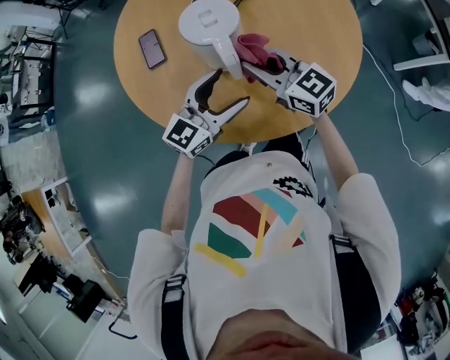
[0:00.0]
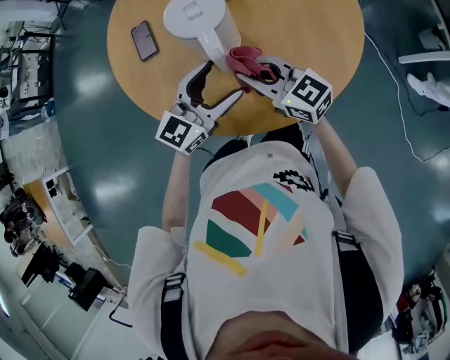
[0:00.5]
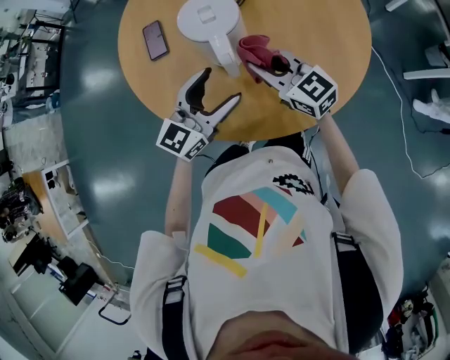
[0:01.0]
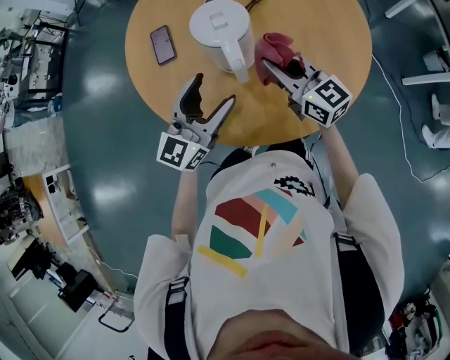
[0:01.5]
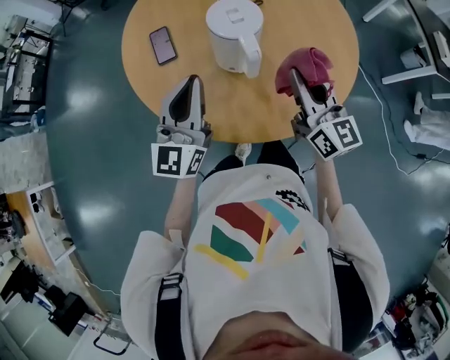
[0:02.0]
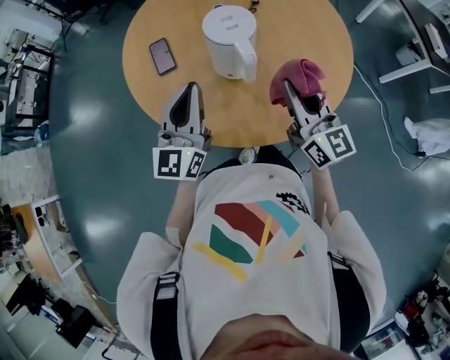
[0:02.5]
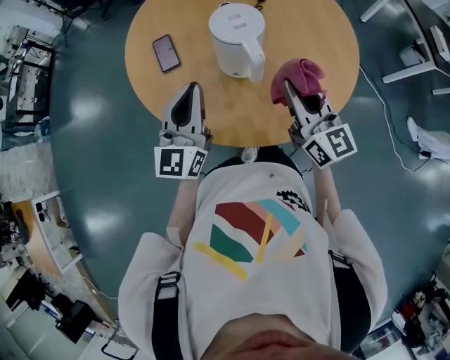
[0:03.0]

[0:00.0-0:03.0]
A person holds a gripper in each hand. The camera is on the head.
0:00.0 to 0:01.5: The left gripper shifts roughly 5 cm to the left.
0:01.5 to 0:03.0: The left gripper heads to the left, covering some 10 cm, and closes. The right gripper goes approximately 10 cm backward, and rotates roughly 30 degrees.

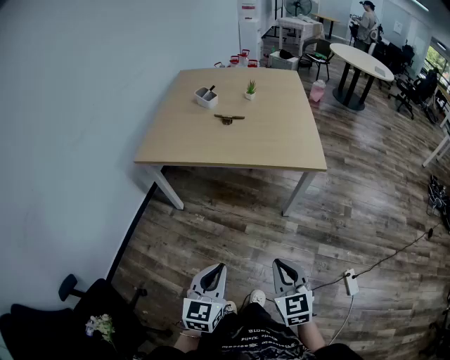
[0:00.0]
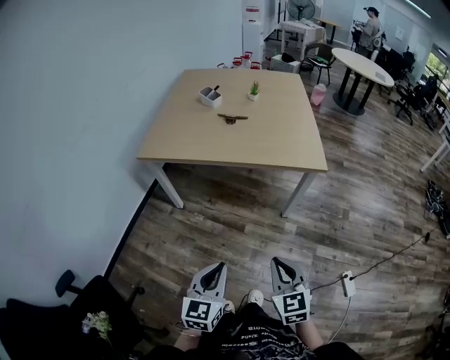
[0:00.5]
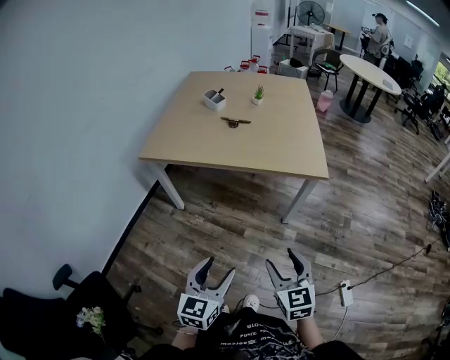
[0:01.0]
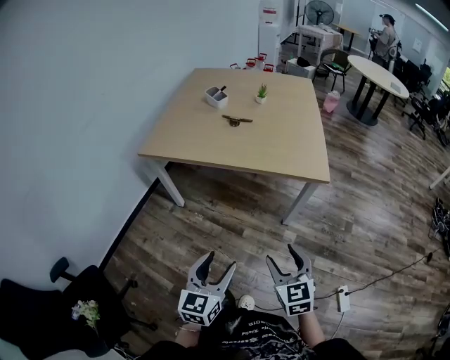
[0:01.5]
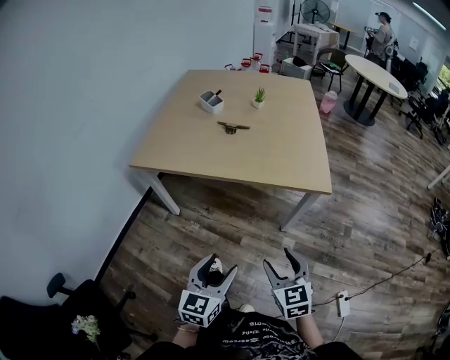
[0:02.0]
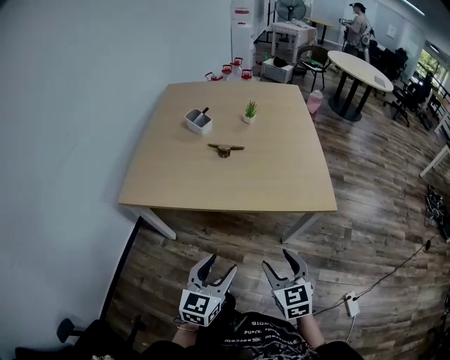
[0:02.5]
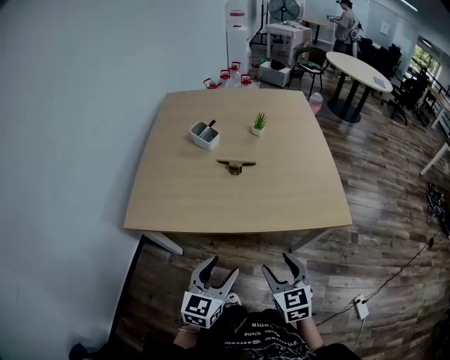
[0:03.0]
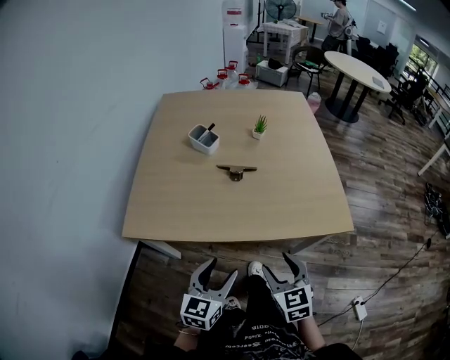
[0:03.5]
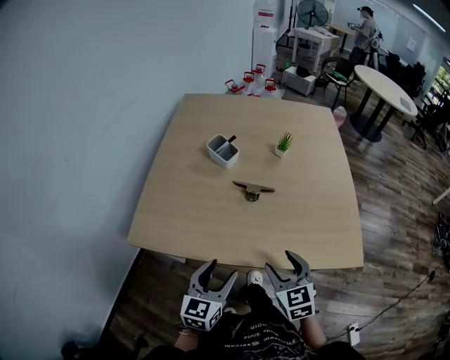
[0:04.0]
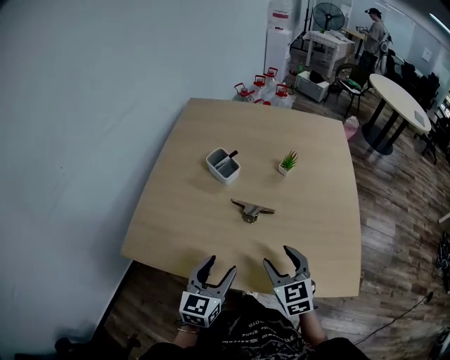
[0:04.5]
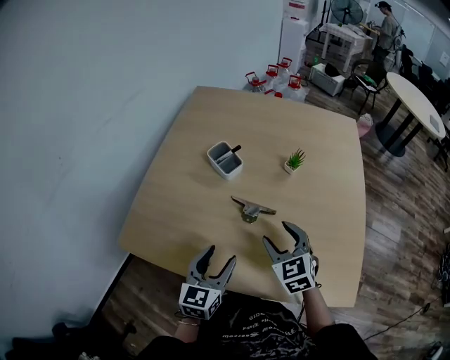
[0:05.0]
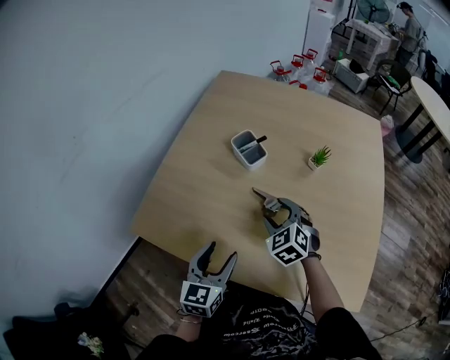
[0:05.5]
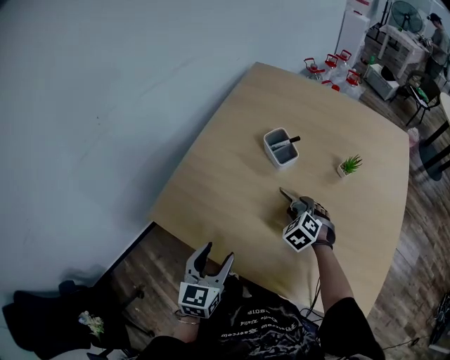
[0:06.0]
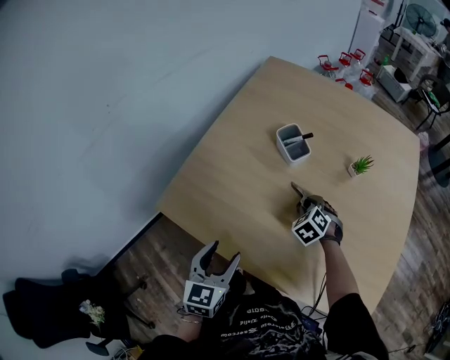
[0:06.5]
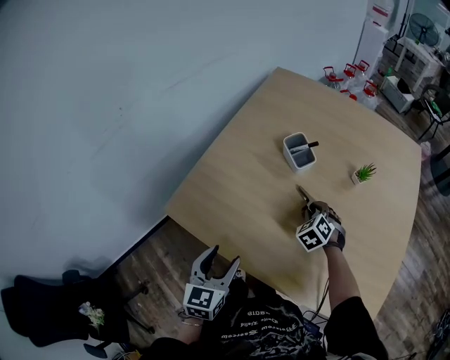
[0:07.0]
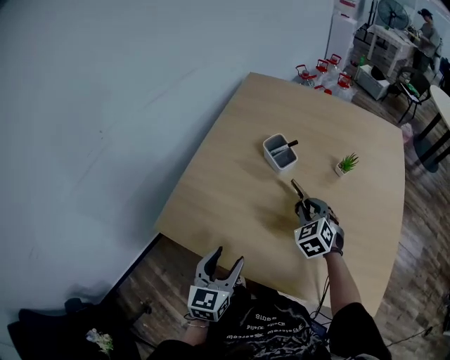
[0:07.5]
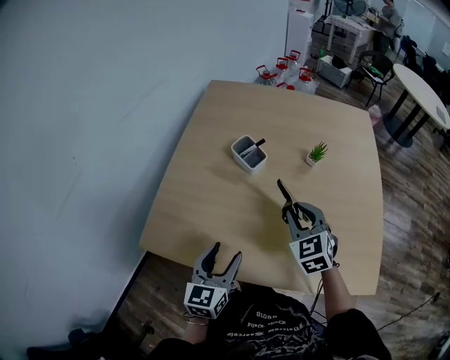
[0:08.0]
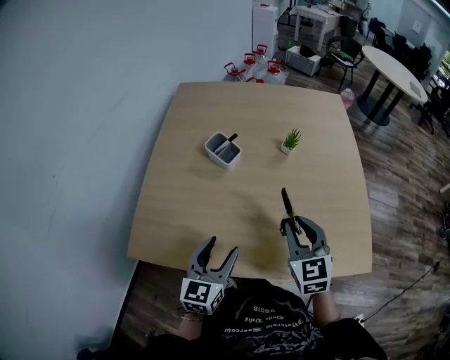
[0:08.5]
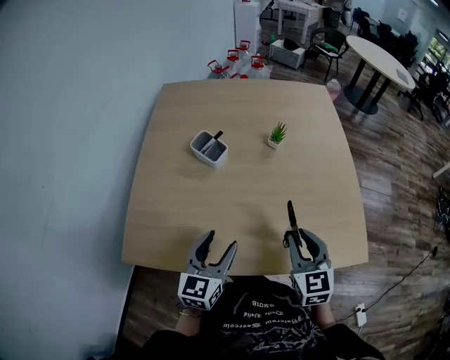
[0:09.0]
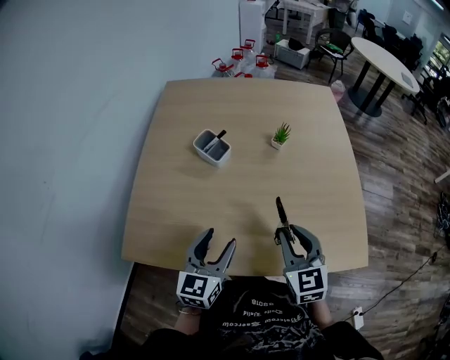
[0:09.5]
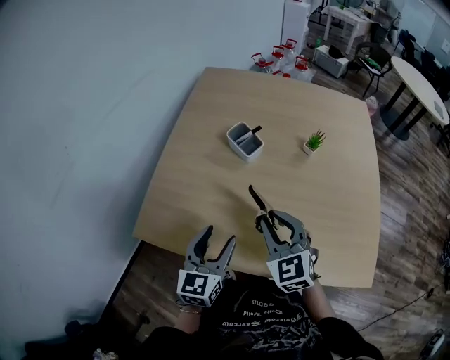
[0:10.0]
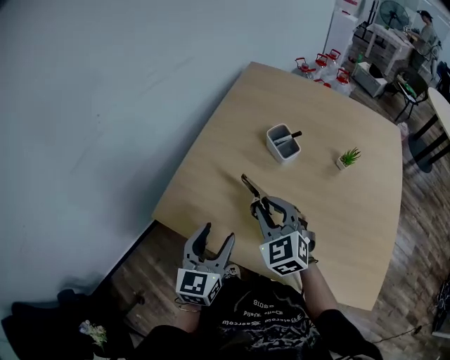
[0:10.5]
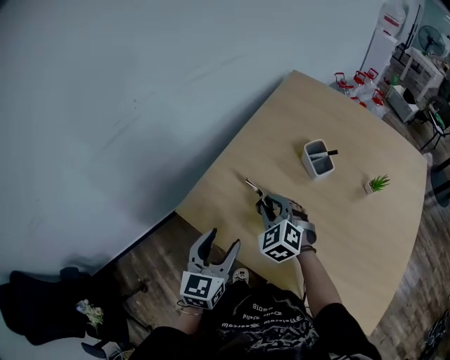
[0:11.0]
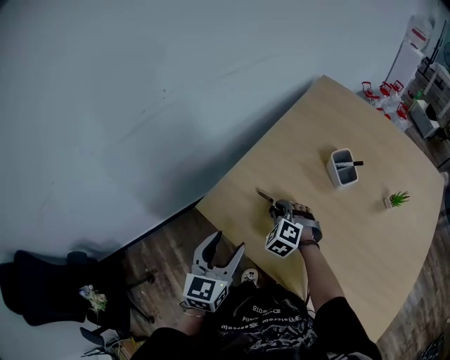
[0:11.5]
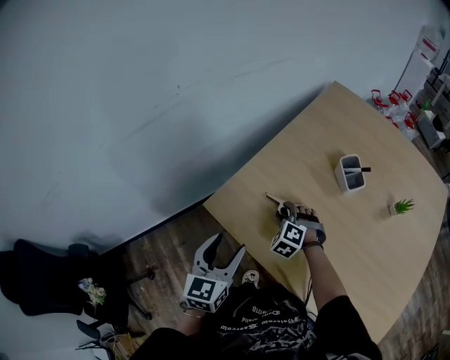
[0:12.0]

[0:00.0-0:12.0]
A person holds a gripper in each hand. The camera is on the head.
0:00.0 to 0:02.0: Both grippers travel together forward, some 10 cm. The right gripper opens its fingers. Meanwhile the left gripper opens up.
0:02.0 to 0:04.0: Both grippers travel together forward and to the left, roughly 40 cm.
0:04.0 to 0:06.0: The right gripper goes about 30 cm forward, and rolls counterclockwise, seen from behind, by some 40 degrees. Meanwhile the left gripper heads forward and to the left, covering about 15 cm, and swivels approximately 30 degrees.
0:06.0 to 0:08.0: The left gripper changes place by some 5 cm, while the right gripper heads upward, covering approximately 15 cm, changes its angle by about 40 degrees, and closes up.
0:08.0 to 0:10.0: The right gripper is displaced backward and to the left by some 10 cm.
0:10.0 to 0:12.0: The right gripper travels to the left, downward and forward by some 30 cm, and twists some 50 degrees counterclockwise, seen from behind. The left gripper goes about 20 cm to the left, and rotates some 30 degrees.

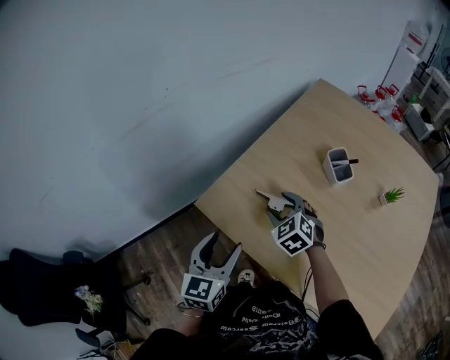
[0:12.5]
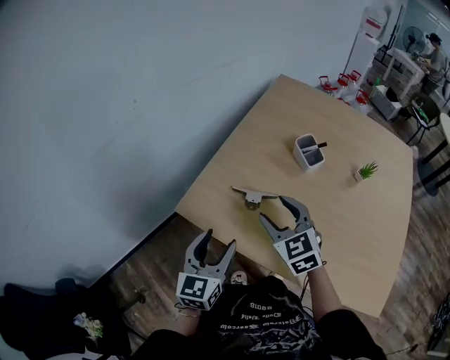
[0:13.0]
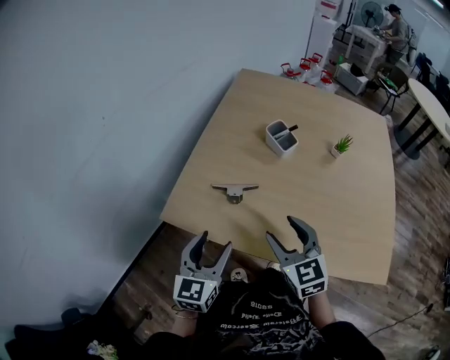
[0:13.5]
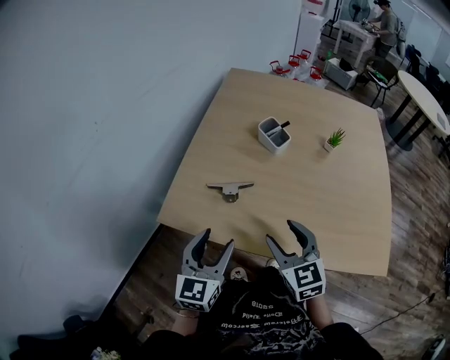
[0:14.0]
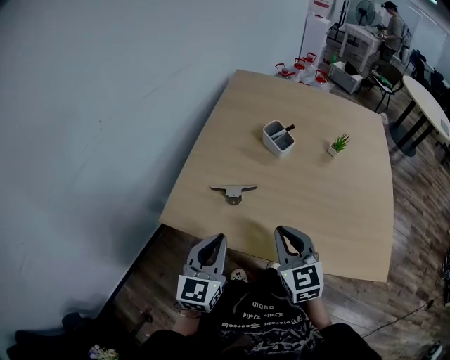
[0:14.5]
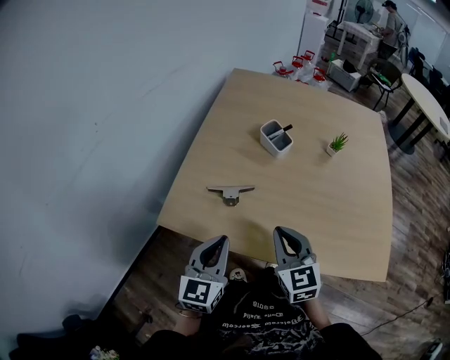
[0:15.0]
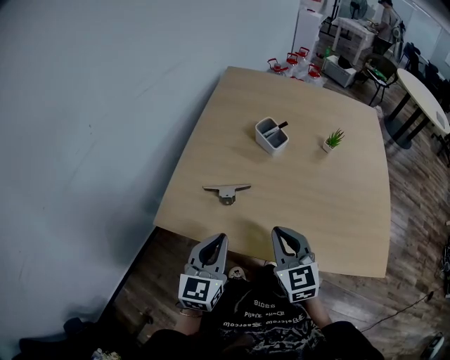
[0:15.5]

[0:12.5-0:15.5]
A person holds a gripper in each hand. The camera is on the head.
0:12.5 to 0:14.0: The left gripper moves to the right, about 5 cm, and rotates approximately 20 degrees. Meanwhile the right gripper moves backward, to the right and upward, about 25 cm, and changes its angle by approximately 40 degrees.
0:14.0 to 0:15.5: The right gripper closes up, while the left gripper closes up.

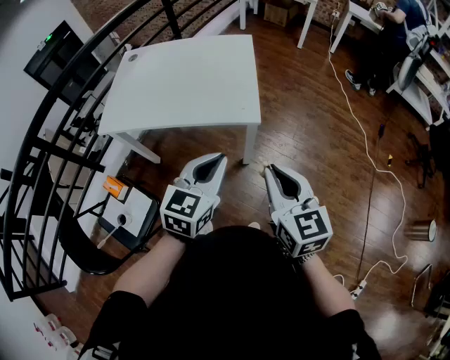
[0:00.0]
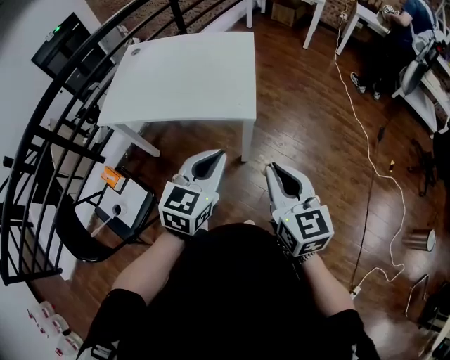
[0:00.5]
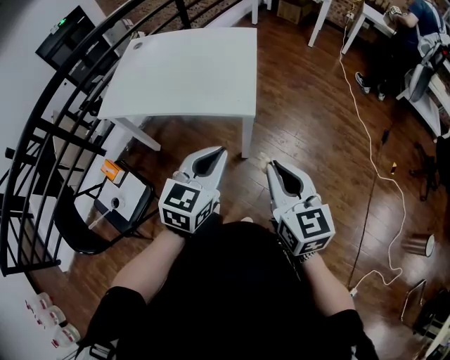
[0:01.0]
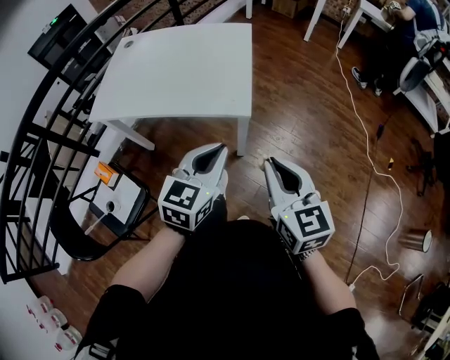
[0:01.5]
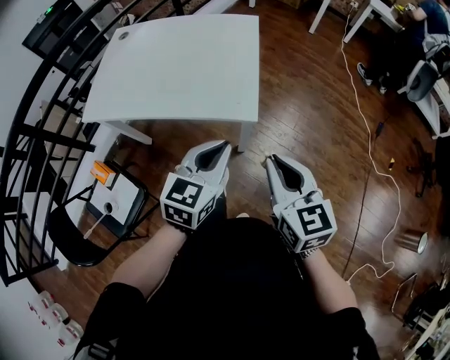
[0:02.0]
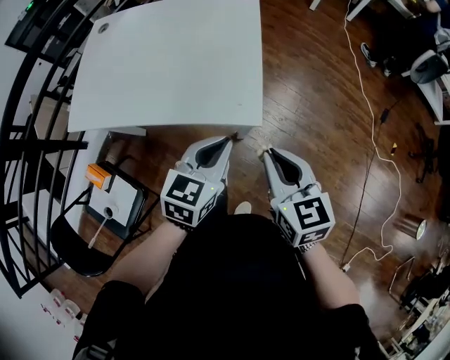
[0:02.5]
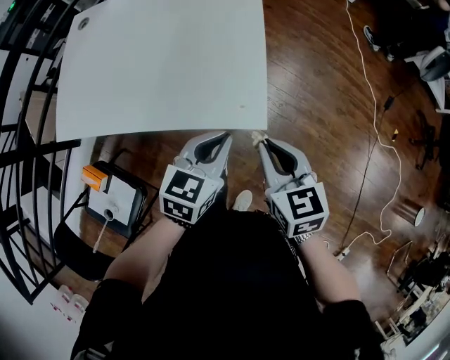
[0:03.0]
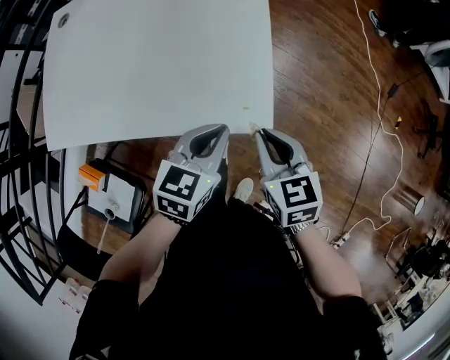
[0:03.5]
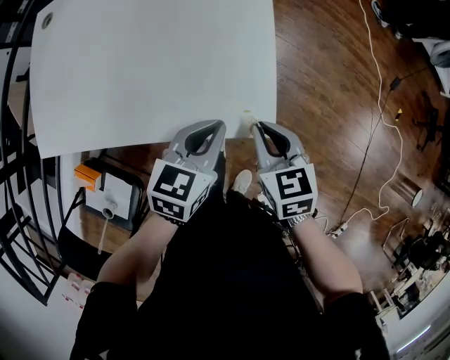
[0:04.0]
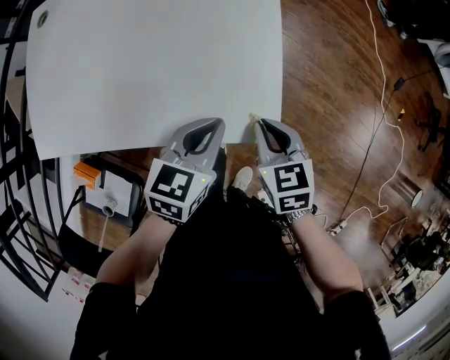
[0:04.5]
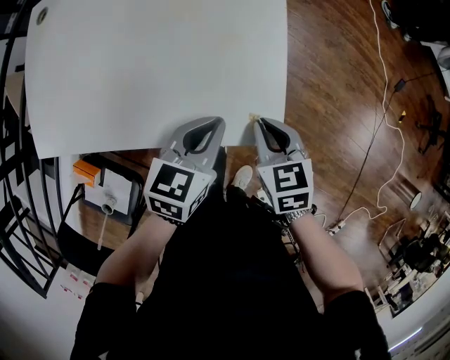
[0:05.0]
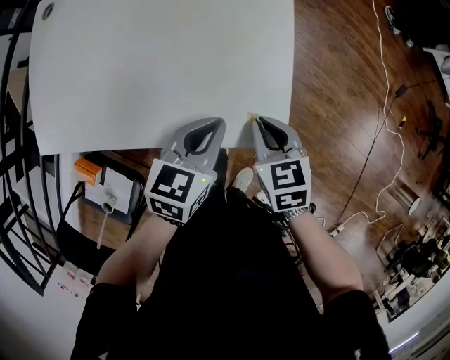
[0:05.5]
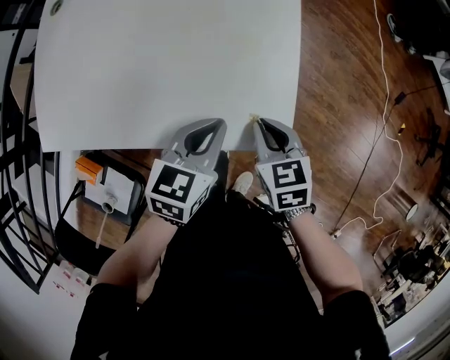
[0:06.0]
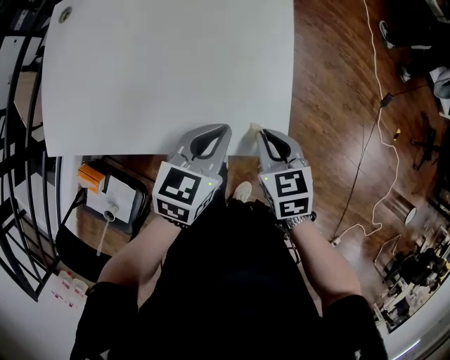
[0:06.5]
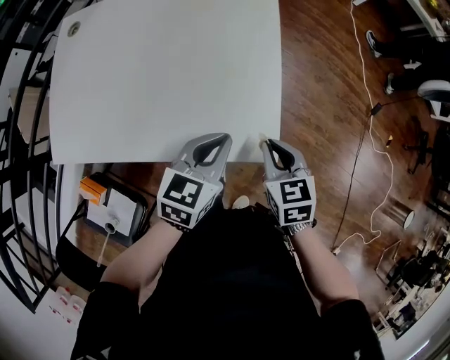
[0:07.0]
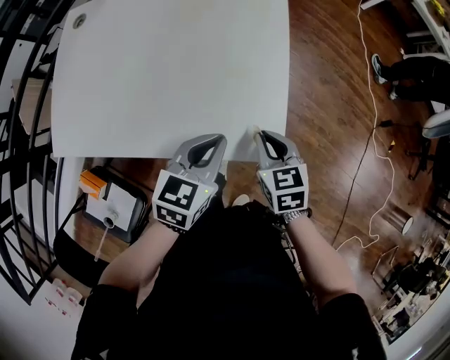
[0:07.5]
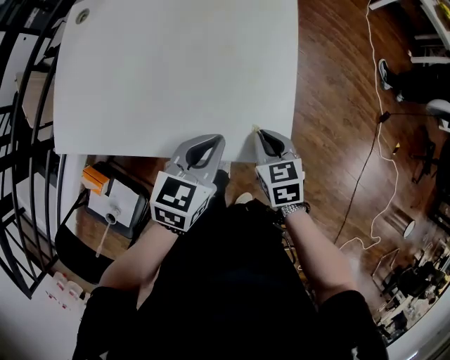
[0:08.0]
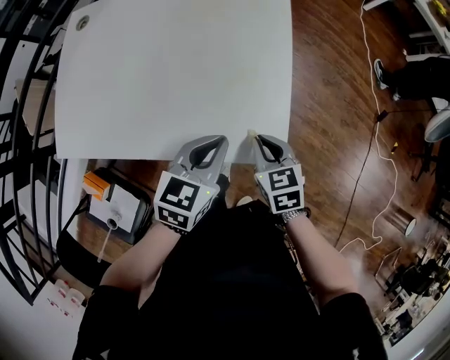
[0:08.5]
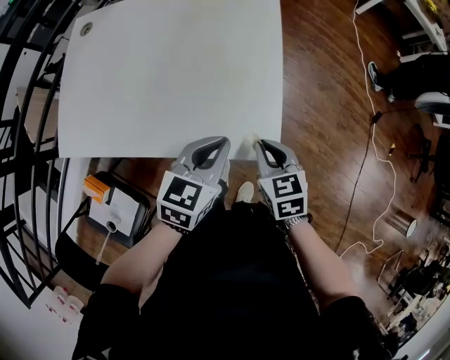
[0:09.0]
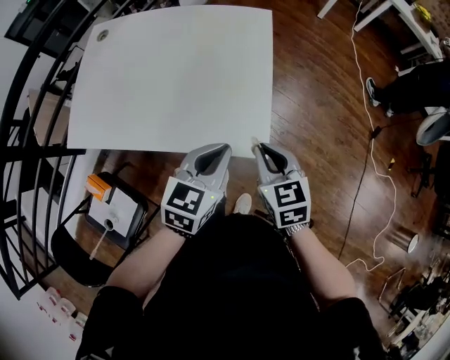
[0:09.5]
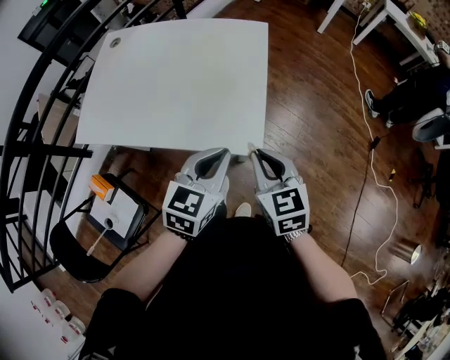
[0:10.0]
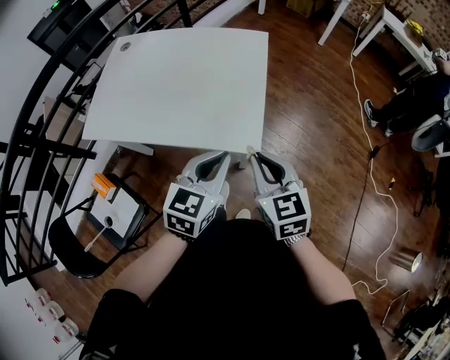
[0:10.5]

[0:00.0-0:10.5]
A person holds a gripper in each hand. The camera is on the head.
0:00.0 to 0:02.0: Both grippers travel together forward, some 10 cm.
0:02.0 to 0:04.0: The left gripper is displaced forward and downward by about 25 cm, and rotates approximately 20 degrees. Meanwhile the right gripper moves downward and forward, some 30 cm, and turns by about 30 degrees.
0:04.0 to 0:06.5: There are only small adjustments of the grippers.
0:06.5 to 0:08.5: The grippers make only small movements.
0:08.5 to 0:10.5: The left gripper moves backward, upward and to the right, about 20 cm. Meanwhile the right gripper is displaced upward and backward by approximately 20 cm, and swivels about 20 degrees.
